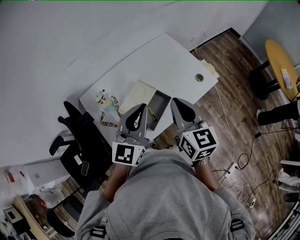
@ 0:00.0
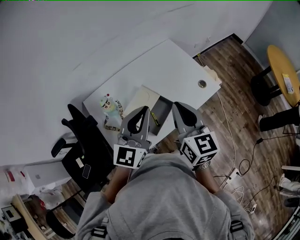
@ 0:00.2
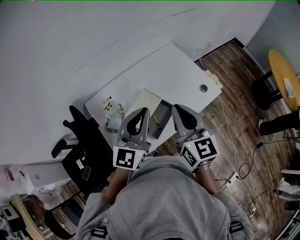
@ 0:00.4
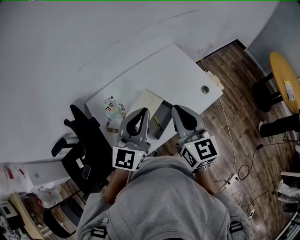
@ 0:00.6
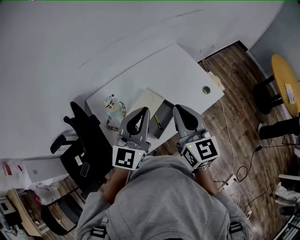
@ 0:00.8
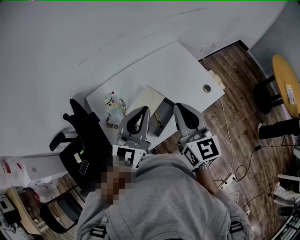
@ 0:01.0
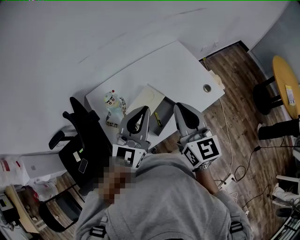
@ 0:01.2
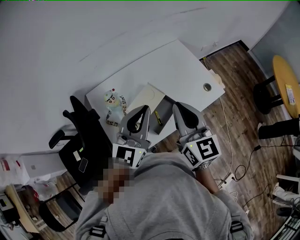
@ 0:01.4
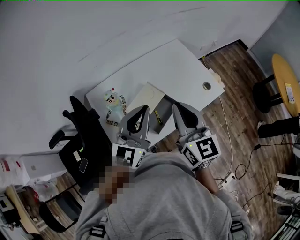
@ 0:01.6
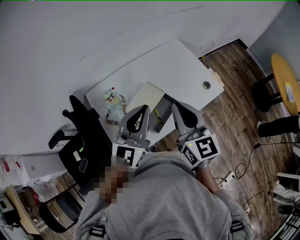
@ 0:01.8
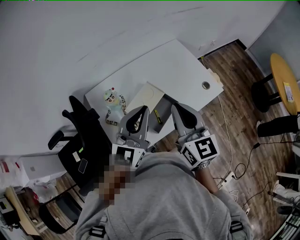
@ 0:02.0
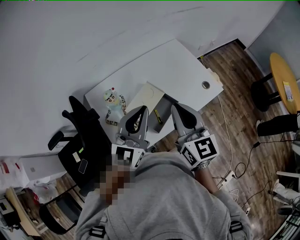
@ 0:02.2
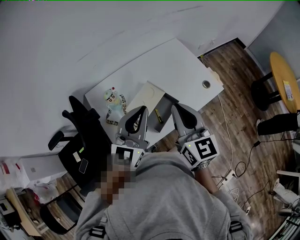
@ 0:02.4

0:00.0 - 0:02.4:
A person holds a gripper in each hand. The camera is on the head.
0:00.0 - 0:02.4: The grippers make only small movements.

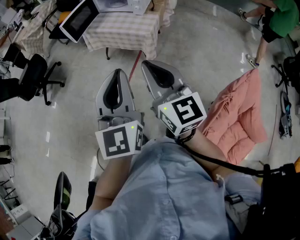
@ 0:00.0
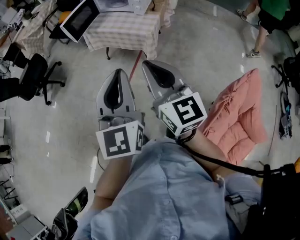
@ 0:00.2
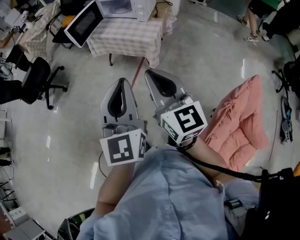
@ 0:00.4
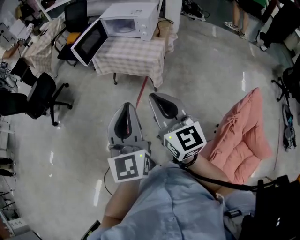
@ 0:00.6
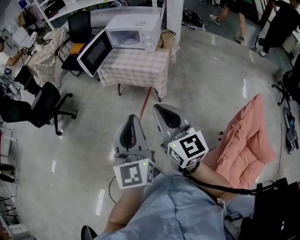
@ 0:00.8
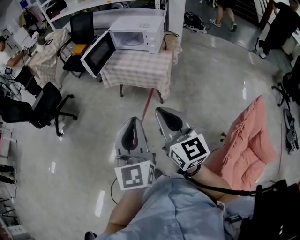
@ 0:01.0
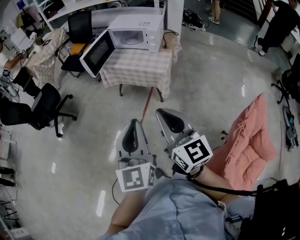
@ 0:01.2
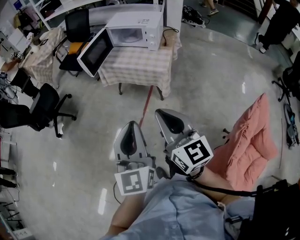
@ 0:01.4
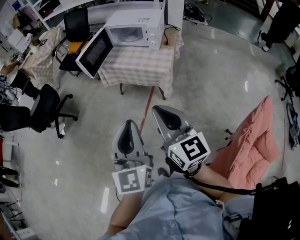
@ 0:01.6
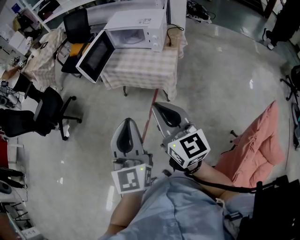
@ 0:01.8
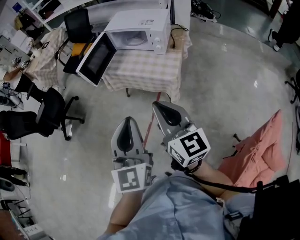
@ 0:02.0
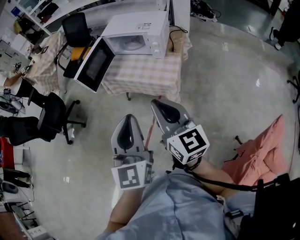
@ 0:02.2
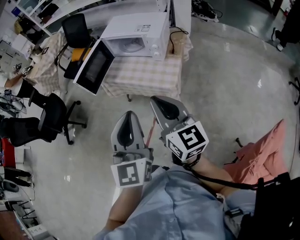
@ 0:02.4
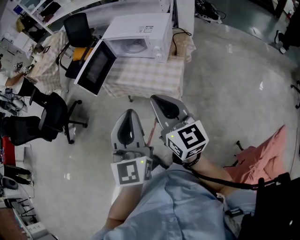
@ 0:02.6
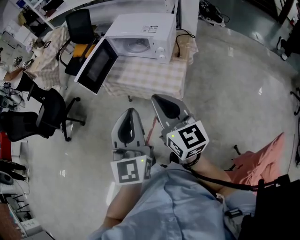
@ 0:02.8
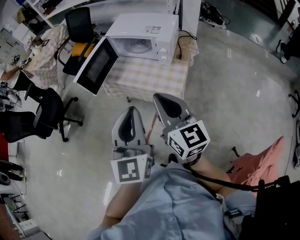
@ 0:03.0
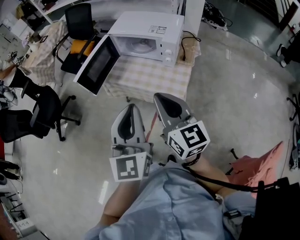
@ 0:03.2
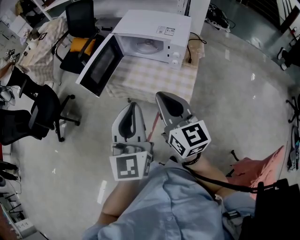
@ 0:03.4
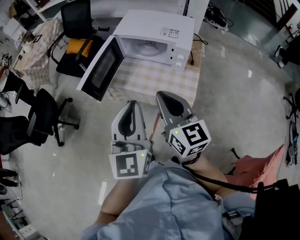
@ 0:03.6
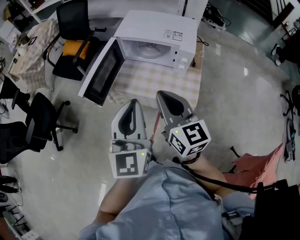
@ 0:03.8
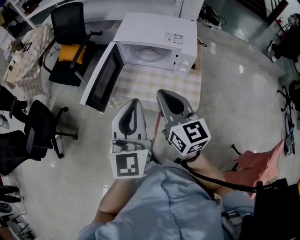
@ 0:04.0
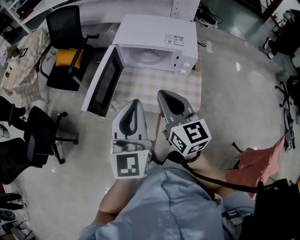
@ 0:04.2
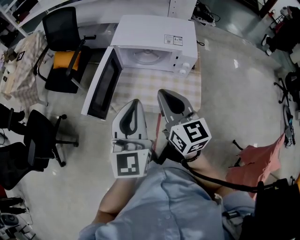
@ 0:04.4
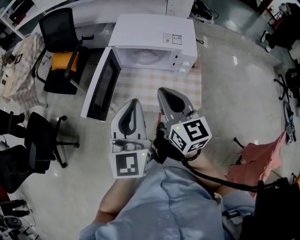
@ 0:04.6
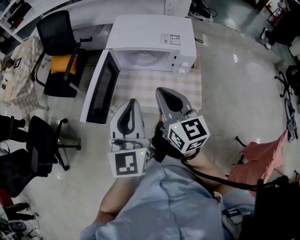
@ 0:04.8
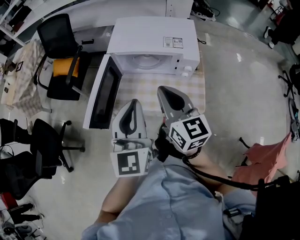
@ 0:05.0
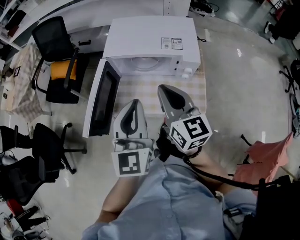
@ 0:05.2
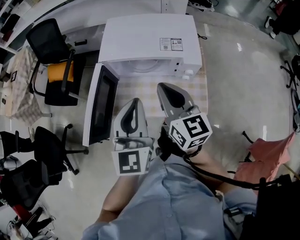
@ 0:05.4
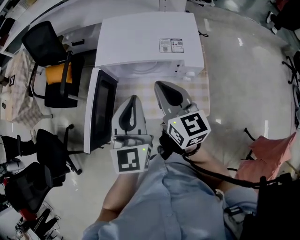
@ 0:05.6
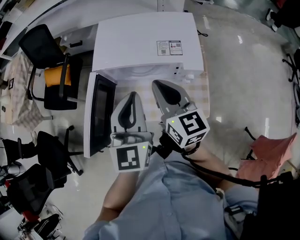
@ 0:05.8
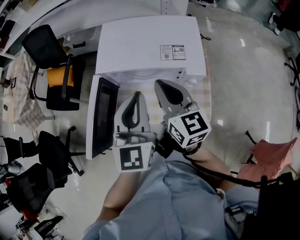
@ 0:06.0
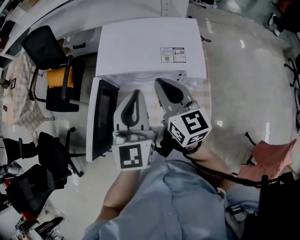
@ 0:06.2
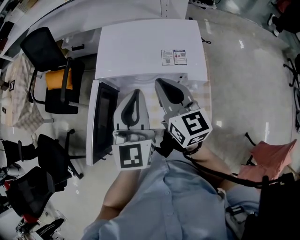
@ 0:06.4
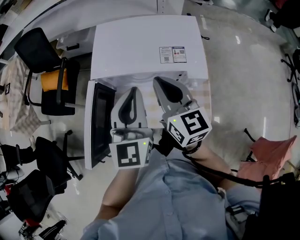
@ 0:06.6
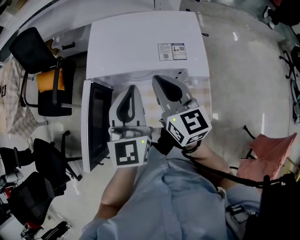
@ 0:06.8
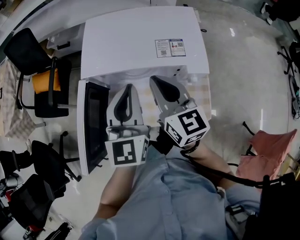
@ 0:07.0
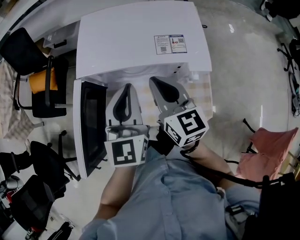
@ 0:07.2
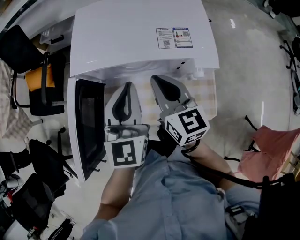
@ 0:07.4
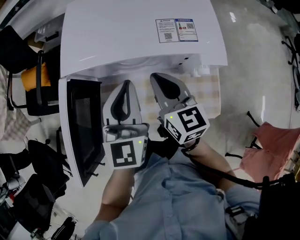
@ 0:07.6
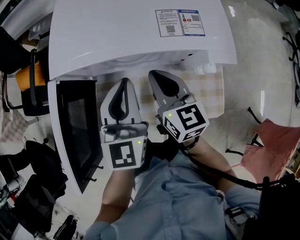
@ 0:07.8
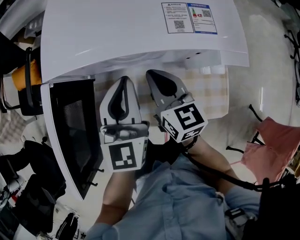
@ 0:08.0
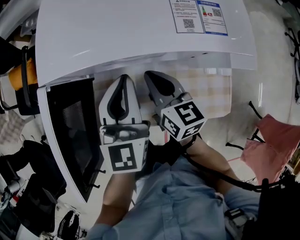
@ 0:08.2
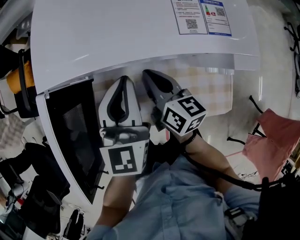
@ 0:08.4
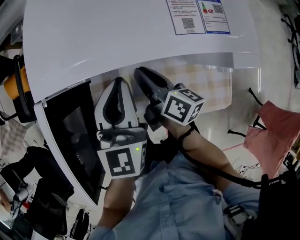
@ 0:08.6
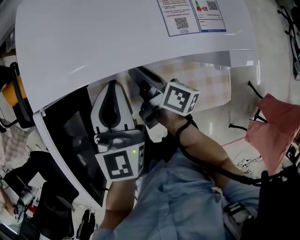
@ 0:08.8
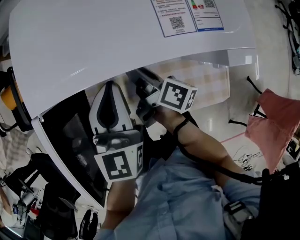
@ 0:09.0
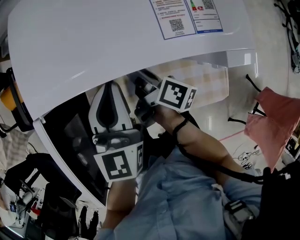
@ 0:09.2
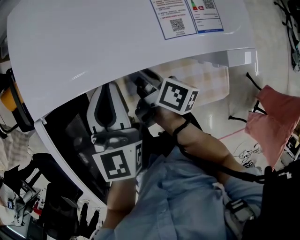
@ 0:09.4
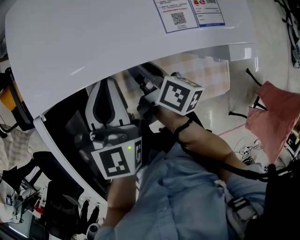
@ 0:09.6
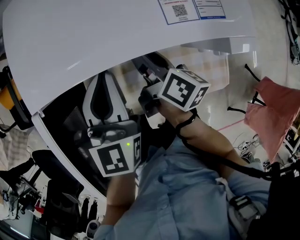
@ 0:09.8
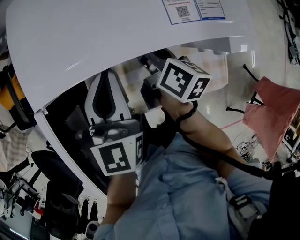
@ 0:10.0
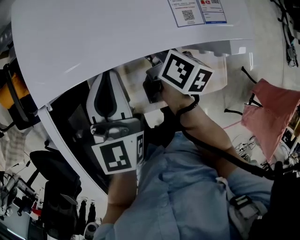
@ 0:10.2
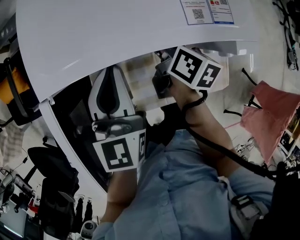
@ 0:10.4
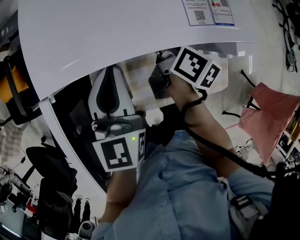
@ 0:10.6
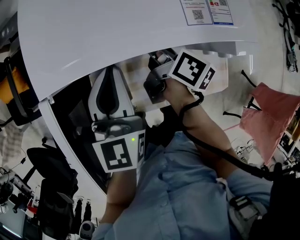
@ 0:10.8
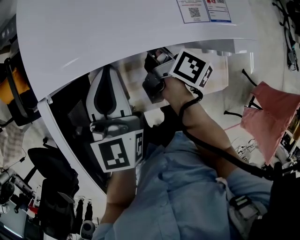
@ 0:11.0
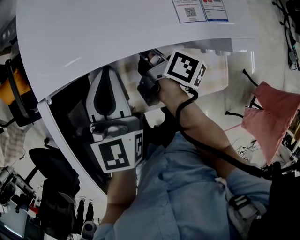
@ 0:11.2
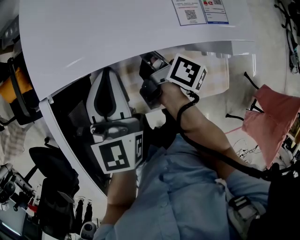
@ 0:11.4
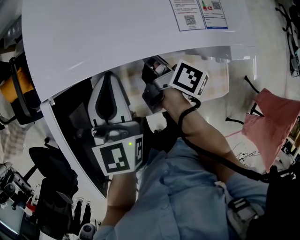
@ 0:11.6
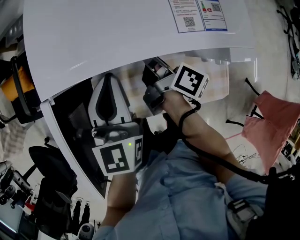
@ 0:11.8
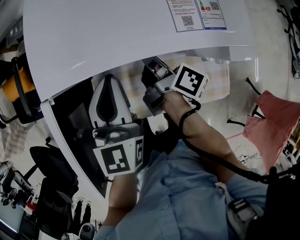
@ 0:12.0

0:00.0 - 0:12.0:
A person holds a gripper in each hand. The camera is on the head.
0:00.0 - 0:01.6: Both grippers move to the left and forward, approximately 10 cm.
0:01.6 - 0:03.0: Both grippers move forward, about 25 cm.
0:03.0 - 0:04.4: The two grippers go about 25 cm forward and to the left.
0:04.4 - 0:06.0: The grippers both shift forward by about 20 cm.
0:06.0 - 0:07.6: The left gripper goes some 15 cm downward and forward. Meanwhile the right gripper is displaced downward by about 15 cm.
0:07.6 - 0:09.0: The right gripper goes about 15 cm downward, twists some 60 degrees clockwise, seen from behind, and opens up. The left gripper travels downward by some 5 cm.
0:09.0 - 0:10.4: The right gripper shifts roughly 5 cm to the right, and turns by about 30 degrees.
0:10.4 - 0:12.0: The right gripper rotates about 30 degrees, and closes its fingers.

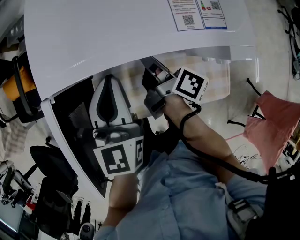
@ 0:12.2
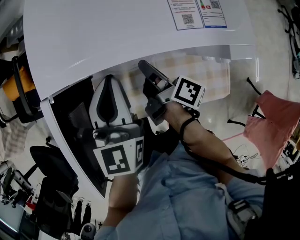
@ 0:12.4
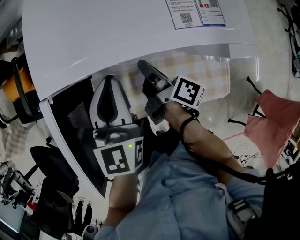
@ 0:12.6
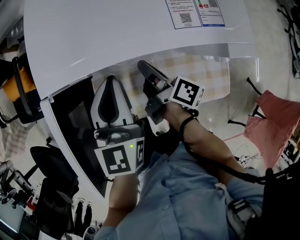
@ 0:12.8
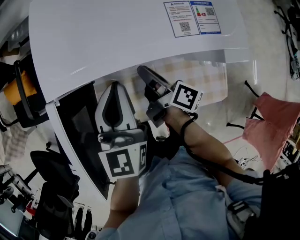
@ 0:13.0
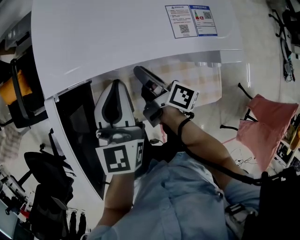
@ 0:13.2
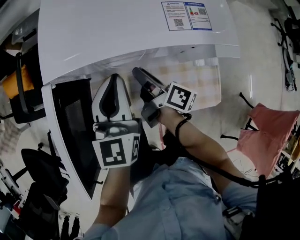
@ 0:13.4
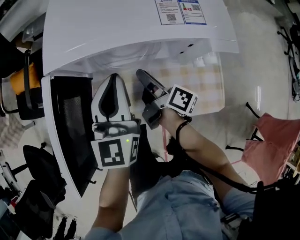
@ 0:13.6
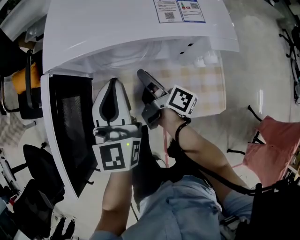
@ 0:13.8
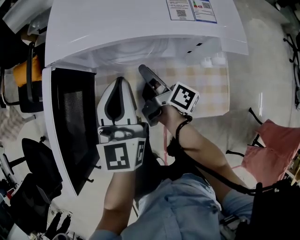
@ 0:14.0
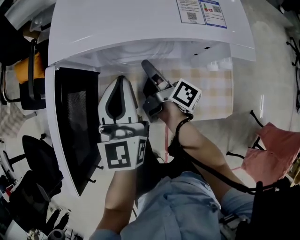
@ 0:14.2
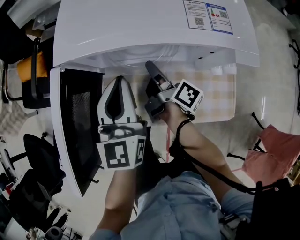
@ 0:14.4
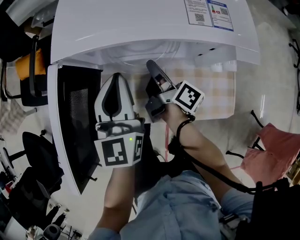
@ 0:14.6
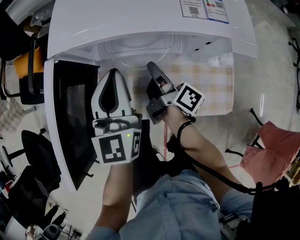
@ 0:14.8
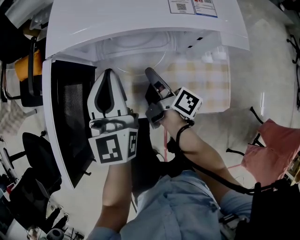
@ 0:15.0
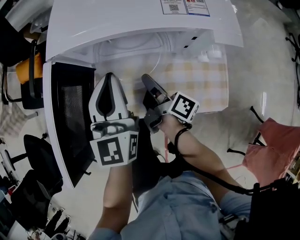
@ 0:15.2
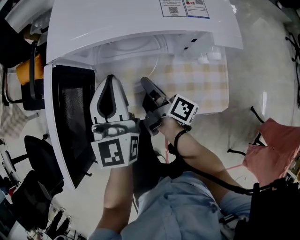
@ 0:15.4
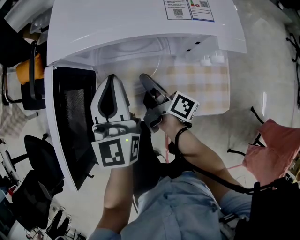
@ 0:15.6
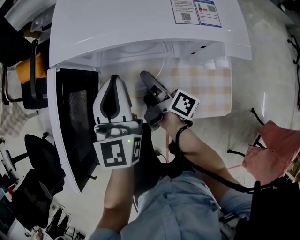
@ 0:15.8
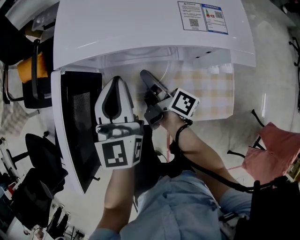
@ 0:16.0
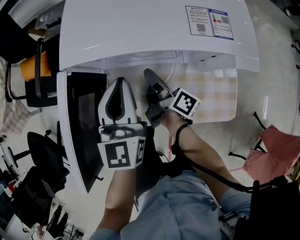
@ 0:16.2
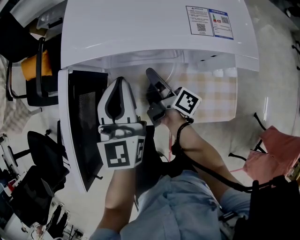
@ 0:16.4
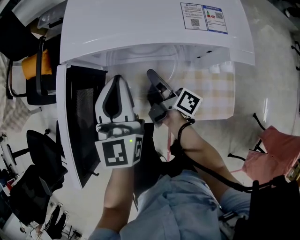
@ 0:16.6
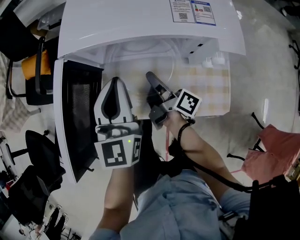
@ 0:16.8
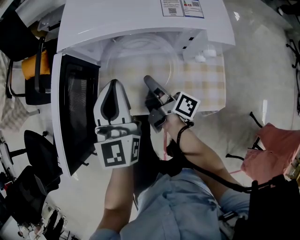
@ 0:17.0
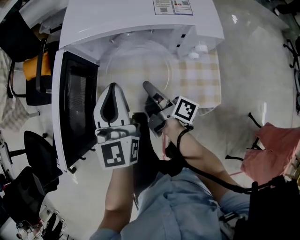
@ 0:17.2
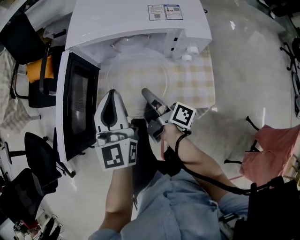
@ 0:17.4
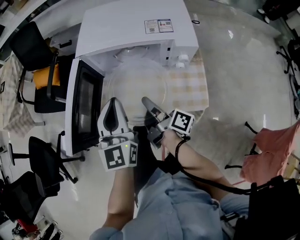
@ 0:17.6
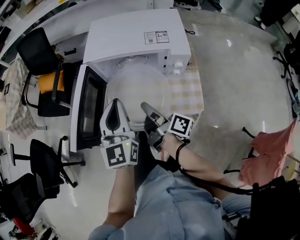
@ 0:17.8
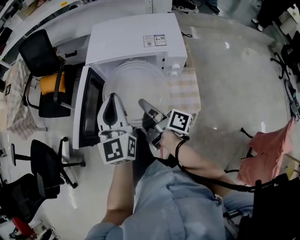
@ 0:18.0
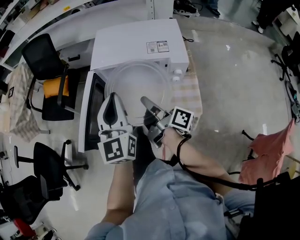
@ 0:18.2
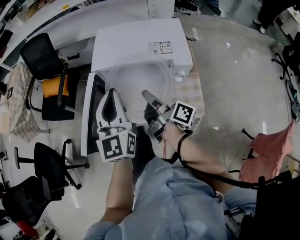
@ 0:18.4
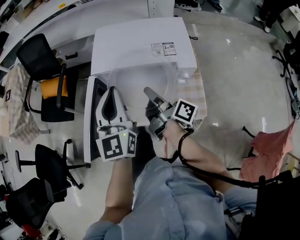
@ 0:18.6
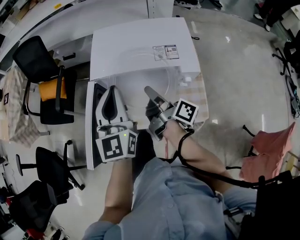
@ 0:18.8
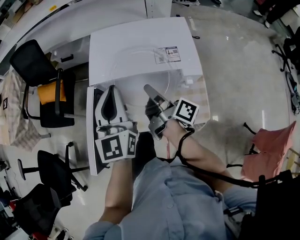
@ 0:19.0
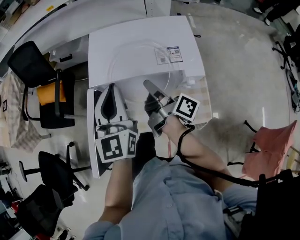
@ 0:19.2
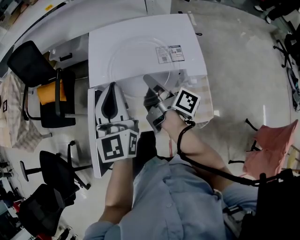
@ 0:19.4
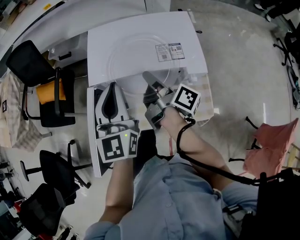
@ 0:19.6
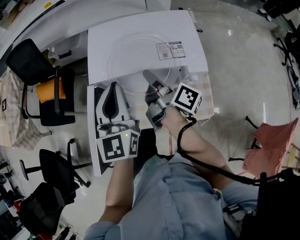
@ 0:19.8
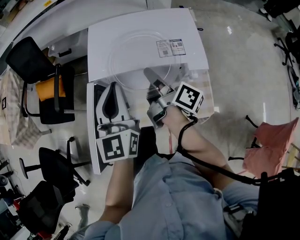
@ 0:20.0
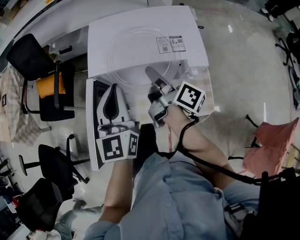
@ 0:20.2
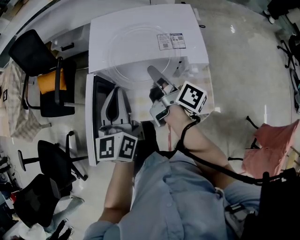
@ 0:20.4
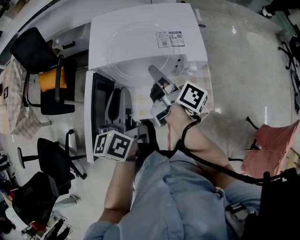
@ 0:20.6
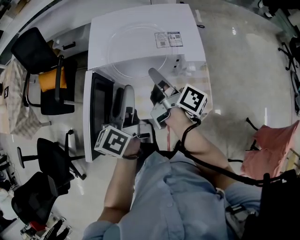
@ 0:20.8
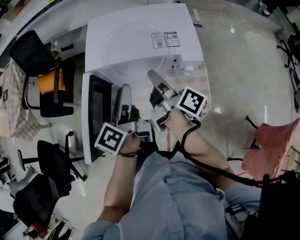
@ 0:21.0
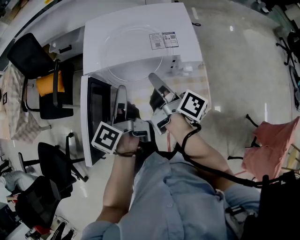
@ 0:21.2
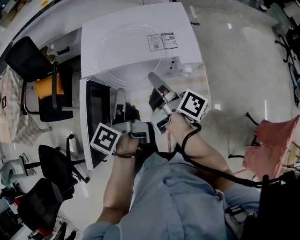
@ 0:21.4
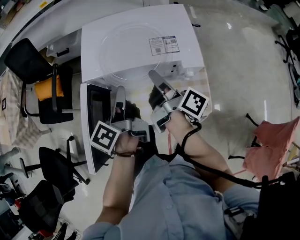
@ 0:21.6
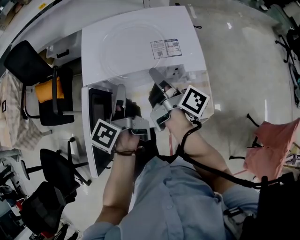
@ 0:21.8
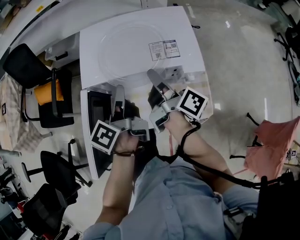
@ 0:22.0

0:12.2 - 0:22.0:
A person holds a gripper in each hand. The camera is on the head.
0:12.2 - 0:13.6: The right gripper moves about 5 cm, and opens up.
0:13.6 - 0:15.0: The right gripper closes its fingers.
0:15.0 - 0:16.4: The right gripper changes place by about 5 cm, and opens and closes again.
0:16.4 - 0:17.8: The two grippers go roughly 20 cm backward and upward.
0:17.8 - 0:19.2: The two grippers go about 15 cm forward and upward.
0:19.2 - 0:20.6: The left gripper moves downward and backward, approximately 10 cm, rotates approximately 40 degrees, and opens up.
0:20.6 - 0:22.0: The left gripper heads forward, covering roughly 5 cm, turns by about 30 degrees, and opens, then closes once more.
